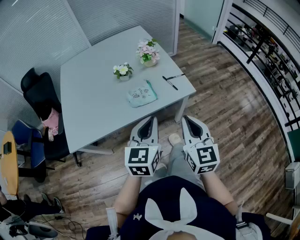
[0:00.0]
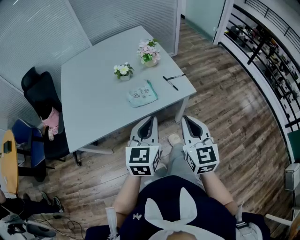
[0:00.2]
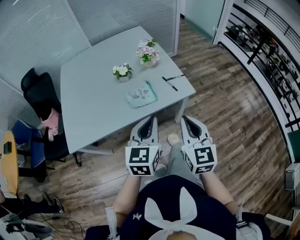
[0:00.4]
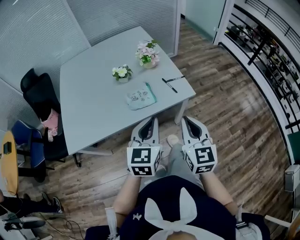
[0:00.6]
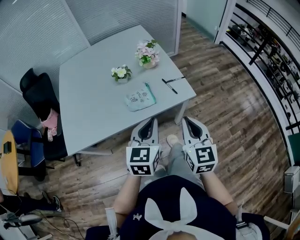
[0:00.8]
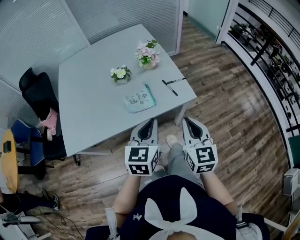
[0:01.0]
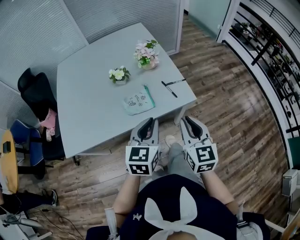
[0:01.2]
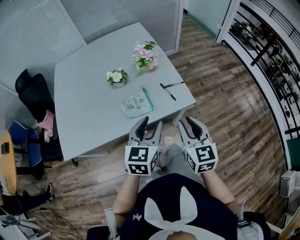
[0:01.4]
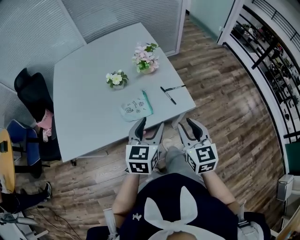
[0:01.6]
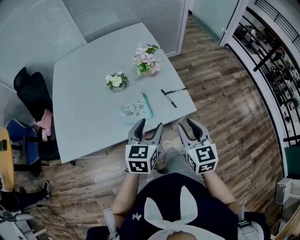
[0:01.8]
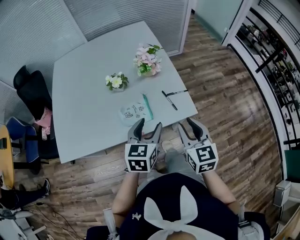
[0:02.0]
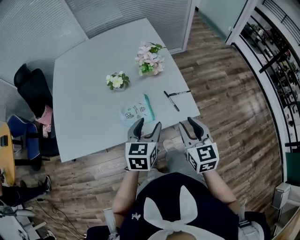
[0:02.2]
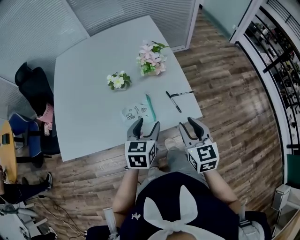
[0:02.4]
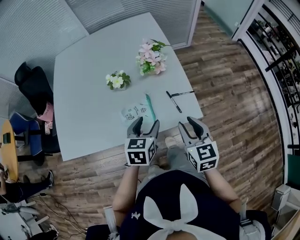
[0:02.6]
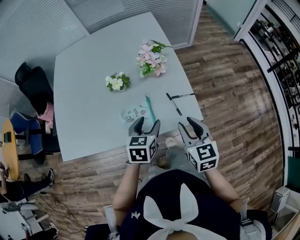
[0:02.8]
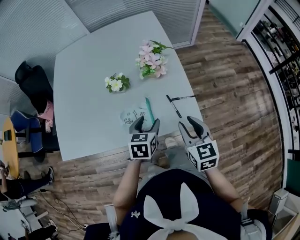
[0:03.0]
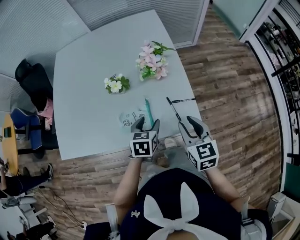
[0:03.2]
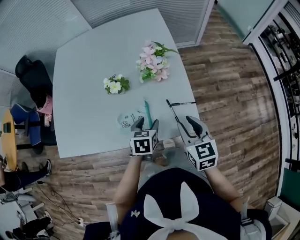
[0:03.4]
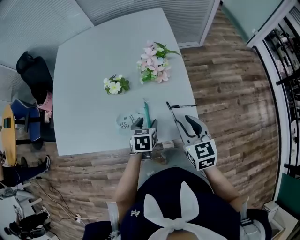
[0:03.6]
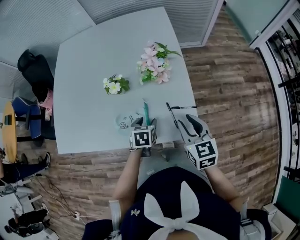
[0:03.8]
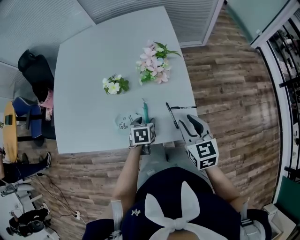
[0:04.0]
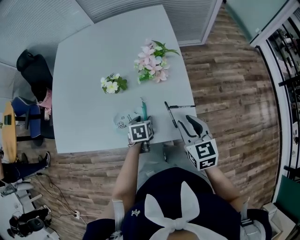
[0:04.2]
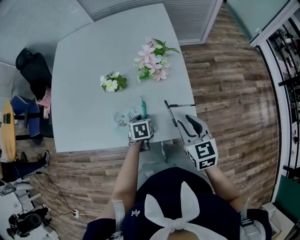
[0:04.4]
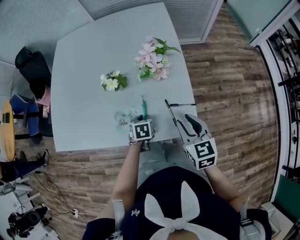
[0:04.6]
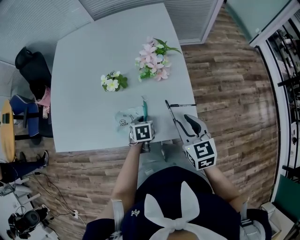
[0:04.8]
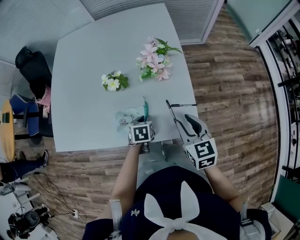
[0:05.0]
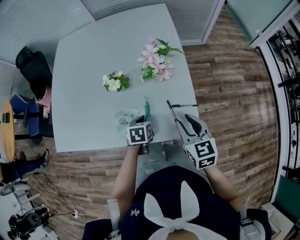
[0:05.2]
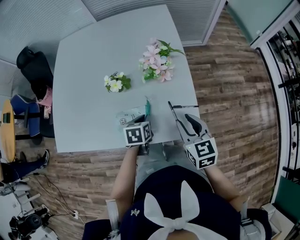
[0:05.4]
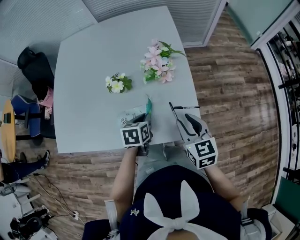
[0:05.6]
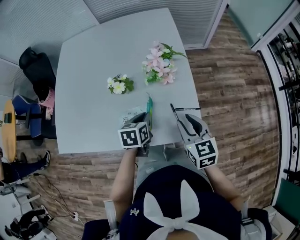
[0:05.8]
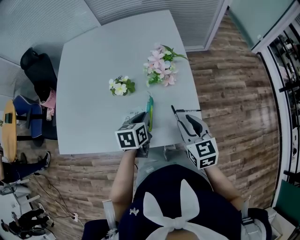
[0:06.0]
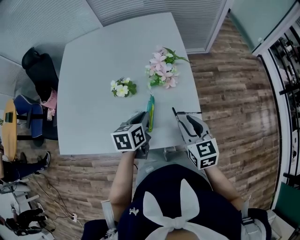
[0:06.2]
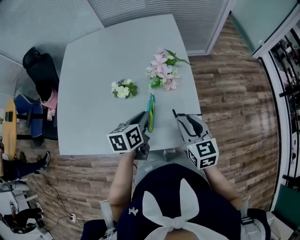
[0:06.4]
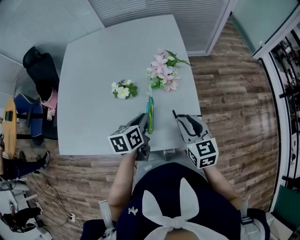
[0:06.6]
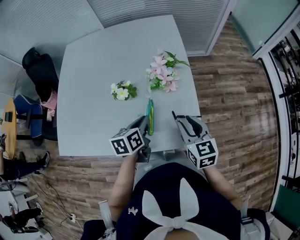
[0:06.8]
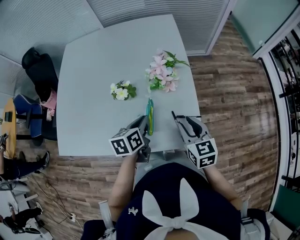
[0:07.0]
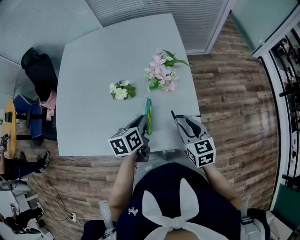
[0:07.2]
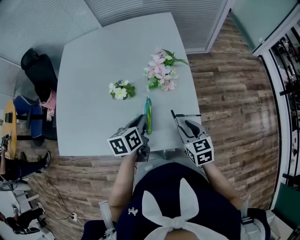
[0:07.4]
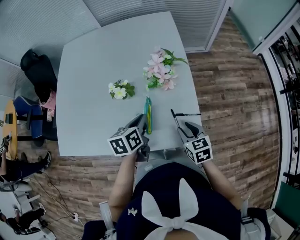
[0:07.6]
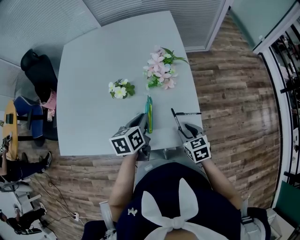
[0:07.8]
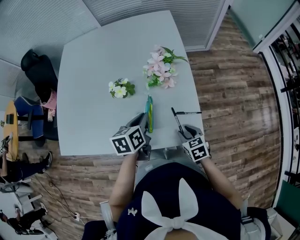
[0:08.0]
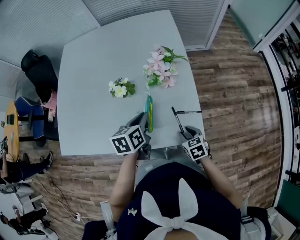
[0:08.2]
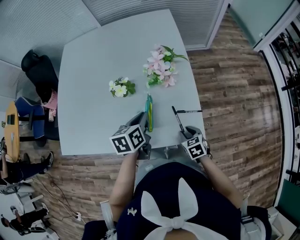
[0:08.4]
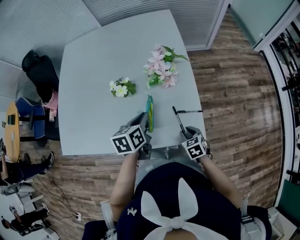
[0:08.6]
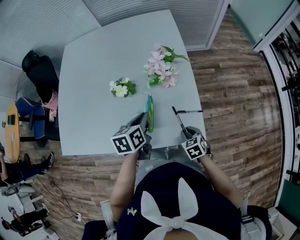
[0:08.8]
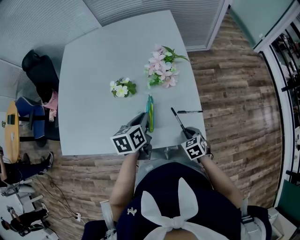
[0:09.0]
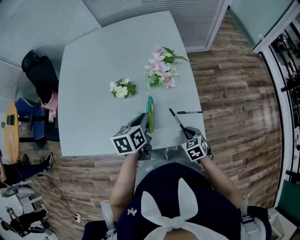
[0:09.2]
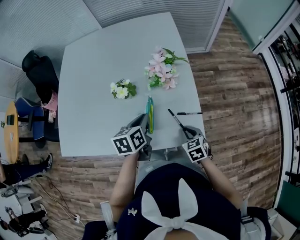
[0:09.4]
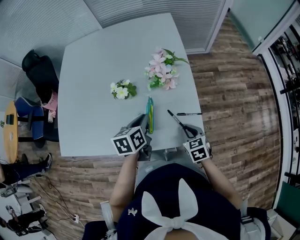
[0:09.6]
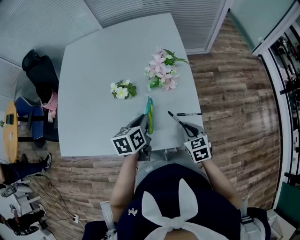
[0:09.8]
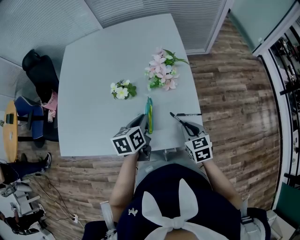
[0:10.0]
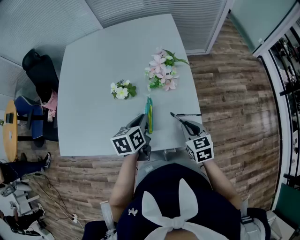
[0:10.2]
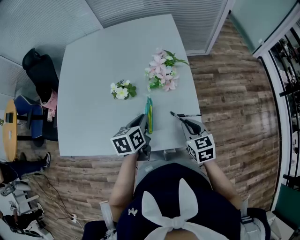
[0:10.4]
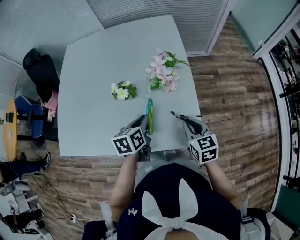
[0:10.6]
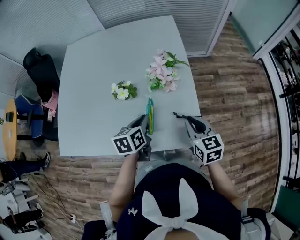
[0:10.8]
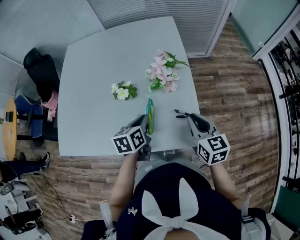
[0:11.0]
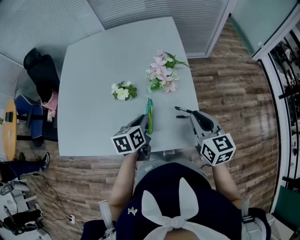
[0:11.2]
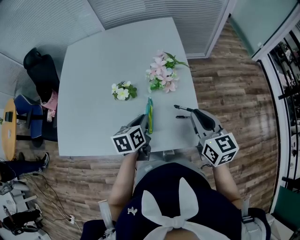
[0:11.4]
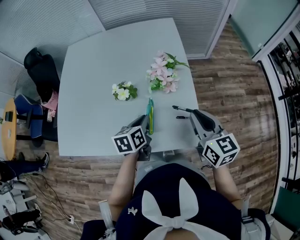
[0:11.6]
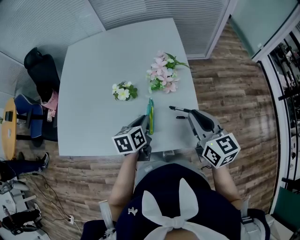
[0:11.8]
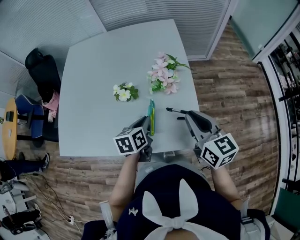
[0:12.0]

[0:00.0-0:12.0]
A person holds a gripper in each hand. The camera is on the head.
0:00.0 to 0:01.6: The right gripper is displaced forward and downward by approximately 15 cm, and opens. The left gripper goes approximately 15 cm forward, and opens its fingers.
0:01.6 to 0:03.0: The right gripper shifts some 15 cm forward, while the left gripper moves forward and downward, approximately 15 cm, and changes its angle by roughly 20 degrees.
0:03.0 to 0:04.4: The right gripper moves forward, some 5 cm; the left gripper is displaced downward and forward by roughly 15 cm, and rotates some 30 degrees.
0:04.4 to 0:06.0: The left gripper travels upward by approximately 10 cm, rotates about 20 degrees, and closes up.
0:06.0 to 0:07.6: The right gripper is displaced downward by about 10 cm.
0:07.6 to 0:09.0: The right gripper travels downward by some 10 cm, and closes up.
0:09.0 to 0:10.4: The right gripper heads upward and forward, covering some 15 cm, and changes its angle by some 20 degrees.
0:10.4 to 0:12.0: The right gripper goes some 15 cm upward, and swivels approximately 20 degrees.

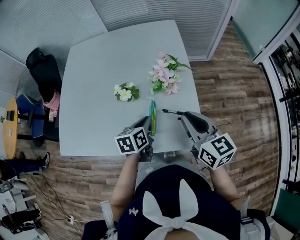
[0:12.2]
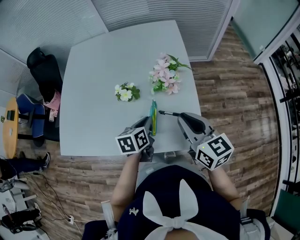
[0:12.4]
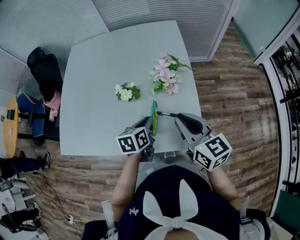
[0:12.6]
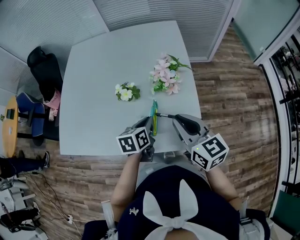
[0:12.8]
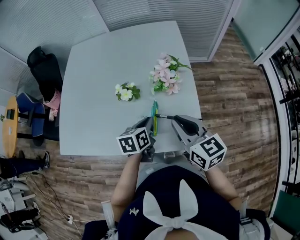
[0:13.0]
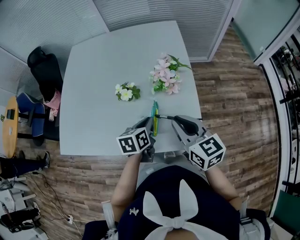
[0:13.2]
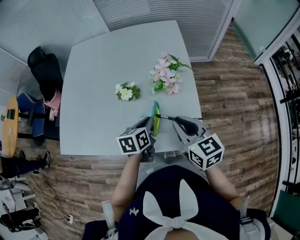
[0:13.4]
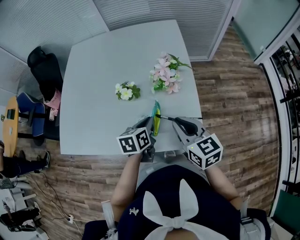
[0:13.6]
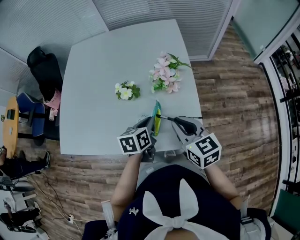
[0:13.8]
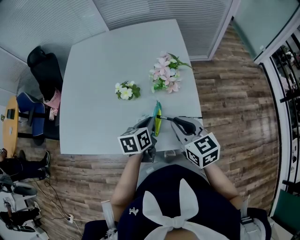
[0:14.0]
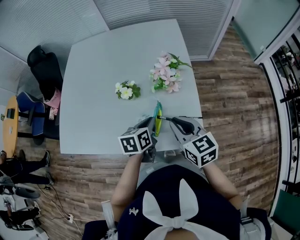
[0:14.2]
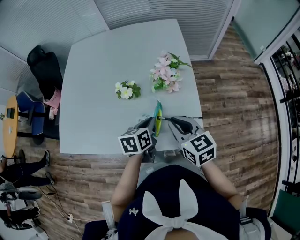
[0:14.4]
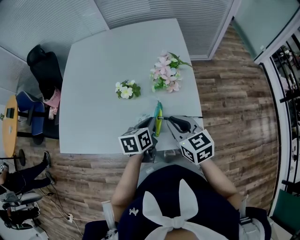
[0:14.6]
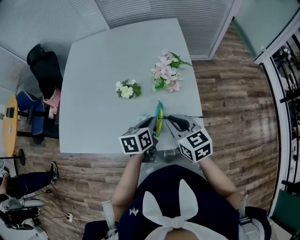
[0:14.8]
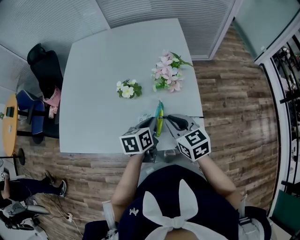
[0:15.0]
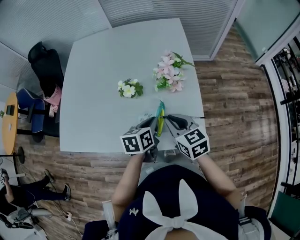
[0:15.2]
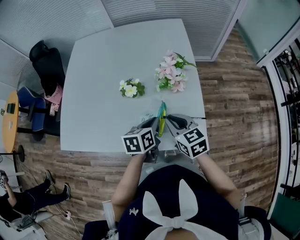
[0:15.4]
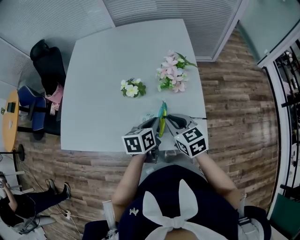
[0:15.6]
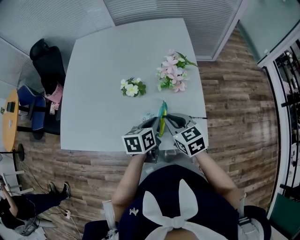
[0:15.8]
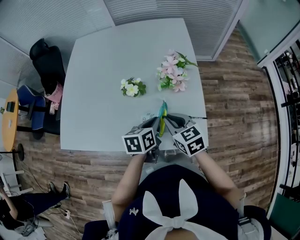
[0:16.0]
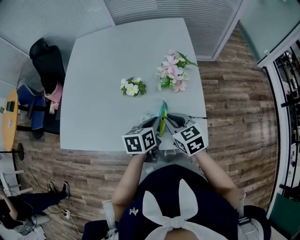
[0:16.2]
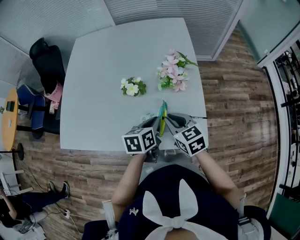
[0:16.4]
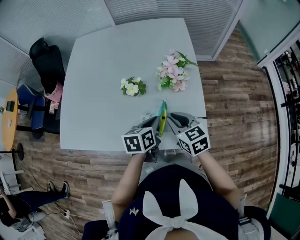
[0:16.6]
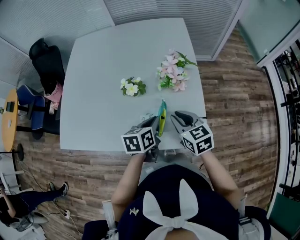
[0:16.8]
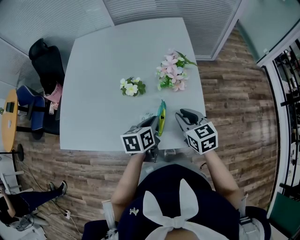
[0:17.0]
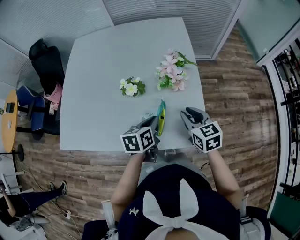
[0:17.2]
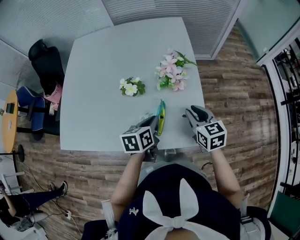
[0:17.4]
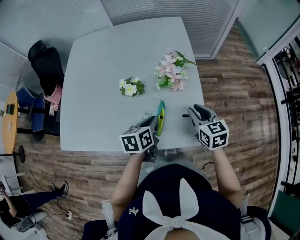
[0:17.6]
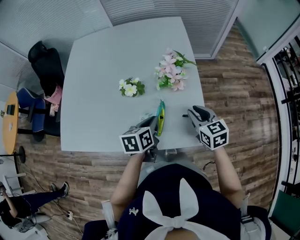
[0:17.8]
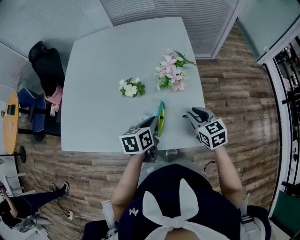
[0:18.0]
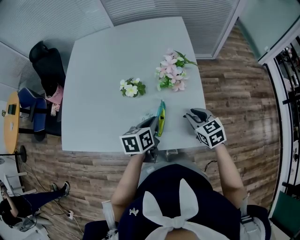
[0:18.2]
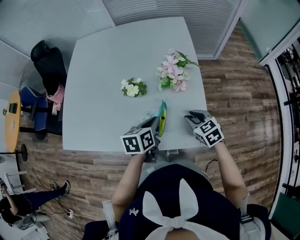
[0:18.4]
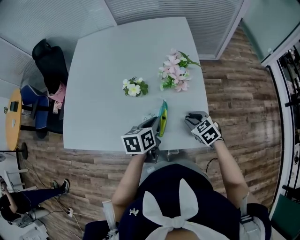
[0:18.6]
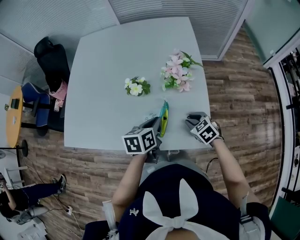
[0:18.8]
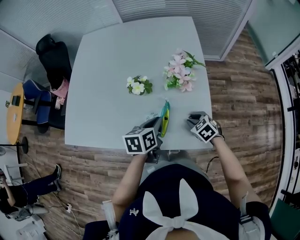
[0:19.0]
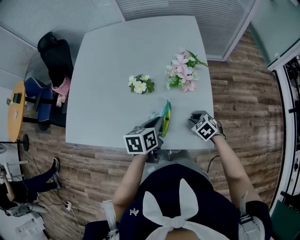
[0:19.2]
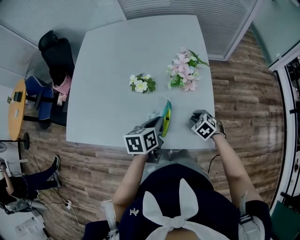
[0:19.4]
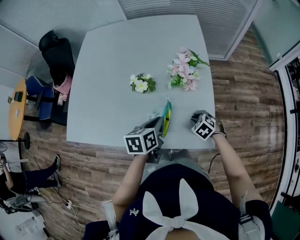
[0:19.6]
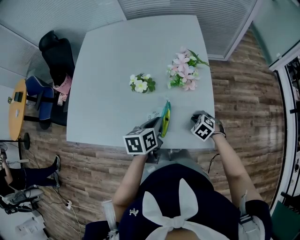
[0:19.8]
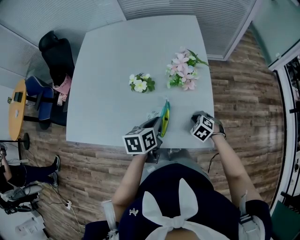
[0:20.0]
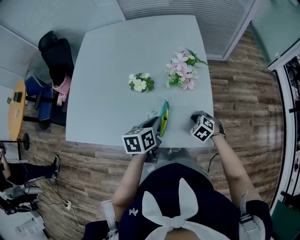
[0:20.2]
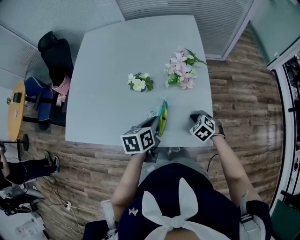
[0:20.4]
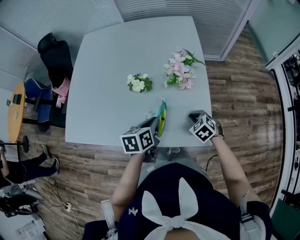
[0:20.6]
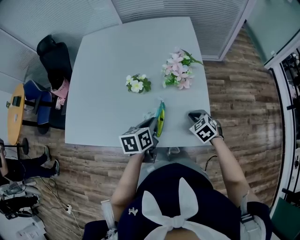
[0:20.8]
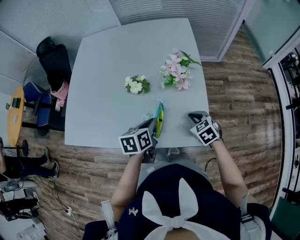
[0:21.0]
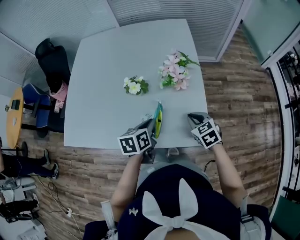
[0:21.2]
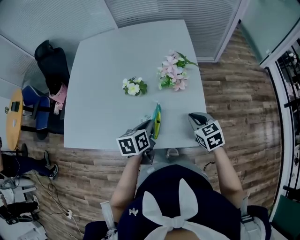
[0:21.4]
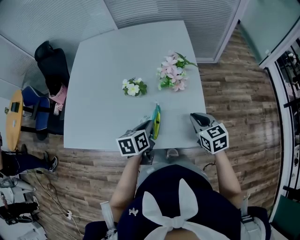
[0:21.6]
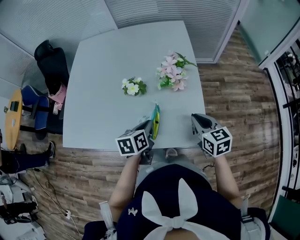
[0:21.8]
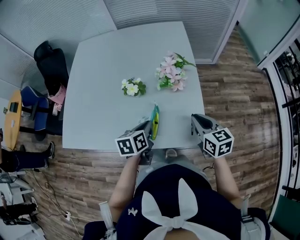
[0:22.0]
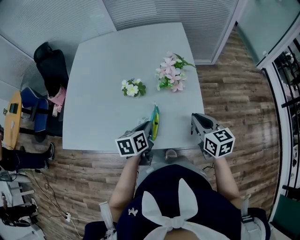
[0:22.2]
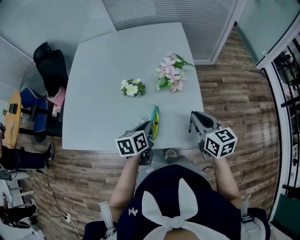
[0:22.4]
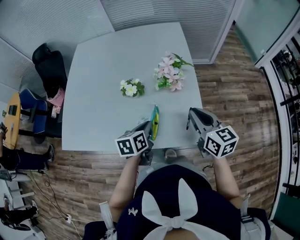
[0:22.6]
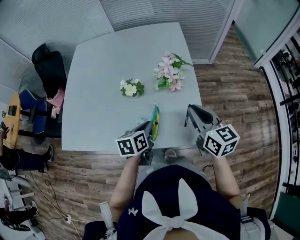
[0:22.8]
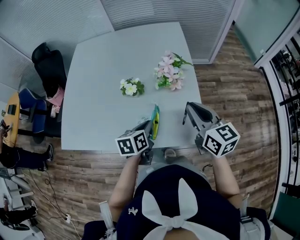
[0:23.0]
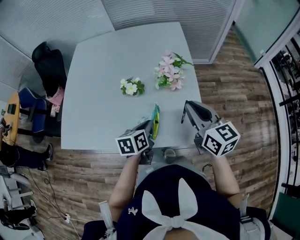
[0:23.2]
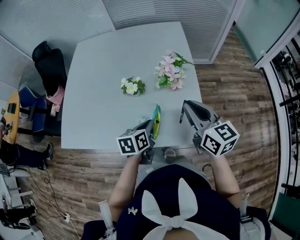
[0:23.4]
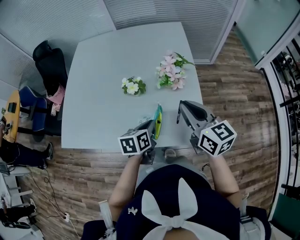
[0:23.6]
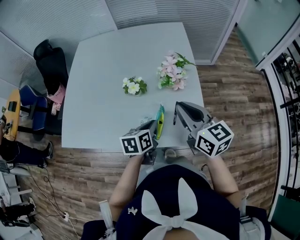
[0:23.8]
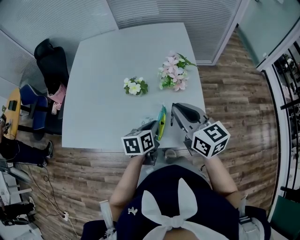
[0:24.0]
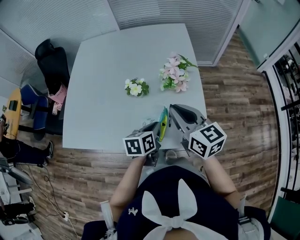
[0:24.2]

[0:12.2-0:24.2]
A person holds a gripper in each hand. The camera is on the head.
0:12.2 to 0:13.8: The right gripper ends up roughly 5 cm from where it was.
0:13.8 to 0:15.2: The right gripper shifts by about 5 cm.
0:15.2 to 0:16.6: The grippers make only small movements.
0:16.6 to 0:18.2: The right gripper is displaced to the right by about 10 cm.
0:18.2 to 0:19.8: The right gripper is displaced downward by roughly 15 cm, and changes its angle by approximately 40 degrees.
0:19.8 to 0:21.2: The right gripper goes roughly 10 cm upward, and swivels some 30 degrees.
0:21.2 to 0:22.6: The right gripper heads upward, covering approximately 15 cm, and changes its angle by roughly 40 degrees.
0:22.6 to 0:24.2: The right gripper travels to the left by approximately 10 cm.
